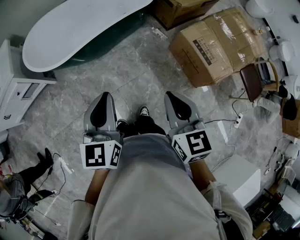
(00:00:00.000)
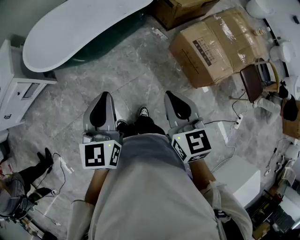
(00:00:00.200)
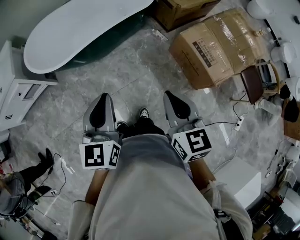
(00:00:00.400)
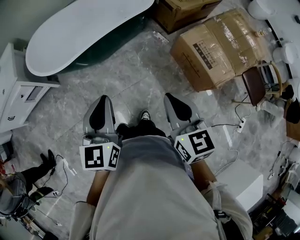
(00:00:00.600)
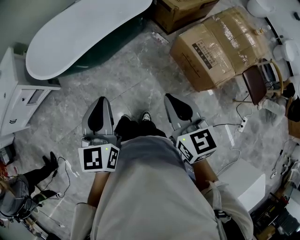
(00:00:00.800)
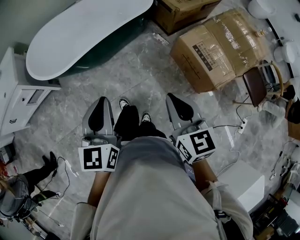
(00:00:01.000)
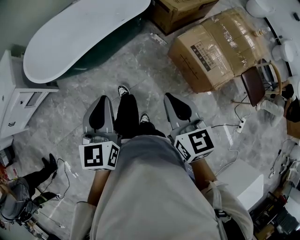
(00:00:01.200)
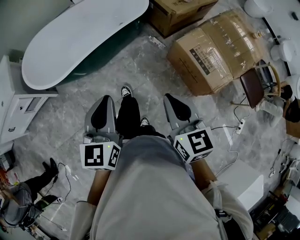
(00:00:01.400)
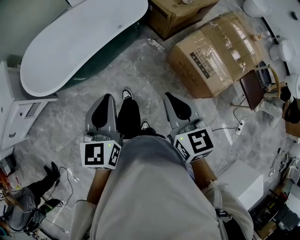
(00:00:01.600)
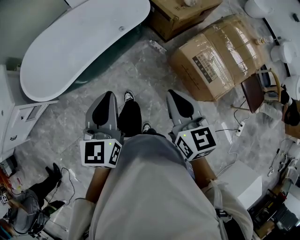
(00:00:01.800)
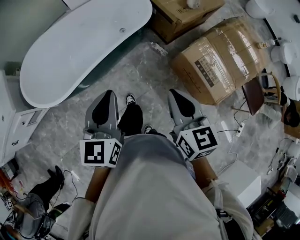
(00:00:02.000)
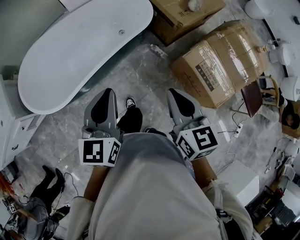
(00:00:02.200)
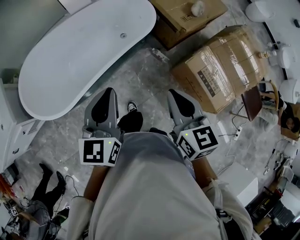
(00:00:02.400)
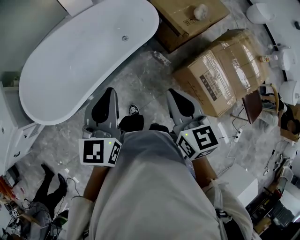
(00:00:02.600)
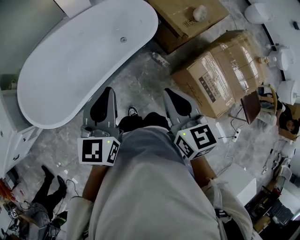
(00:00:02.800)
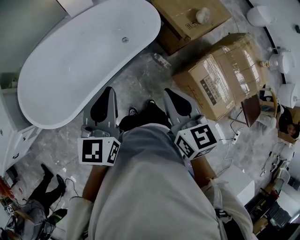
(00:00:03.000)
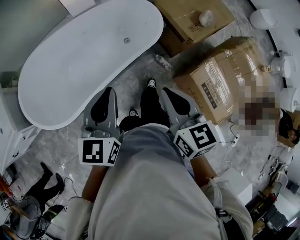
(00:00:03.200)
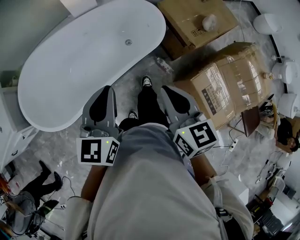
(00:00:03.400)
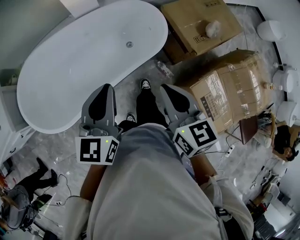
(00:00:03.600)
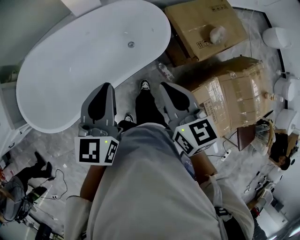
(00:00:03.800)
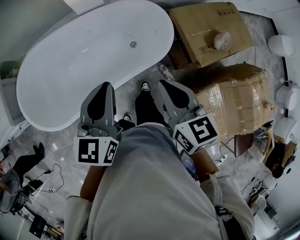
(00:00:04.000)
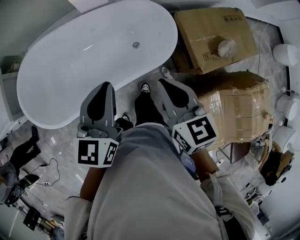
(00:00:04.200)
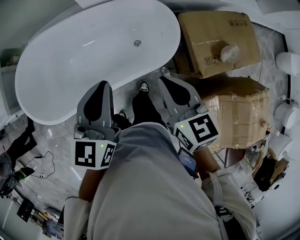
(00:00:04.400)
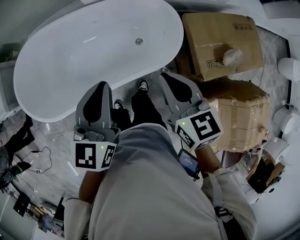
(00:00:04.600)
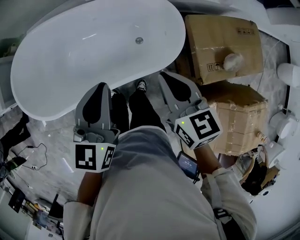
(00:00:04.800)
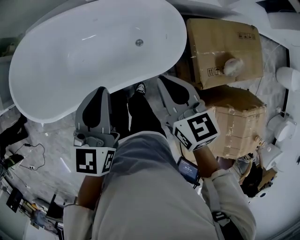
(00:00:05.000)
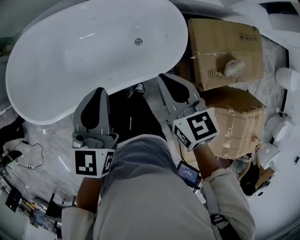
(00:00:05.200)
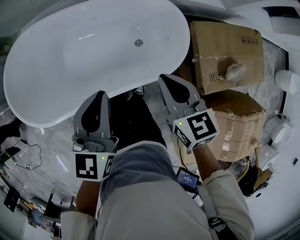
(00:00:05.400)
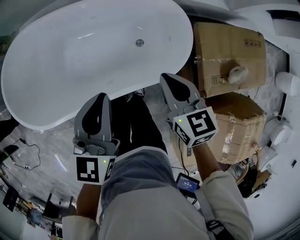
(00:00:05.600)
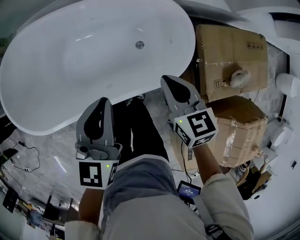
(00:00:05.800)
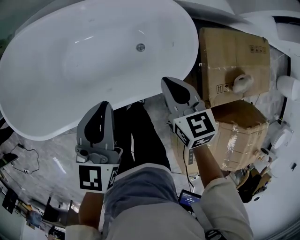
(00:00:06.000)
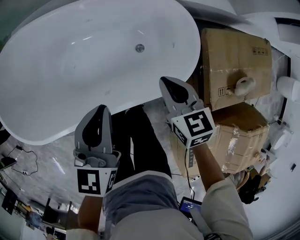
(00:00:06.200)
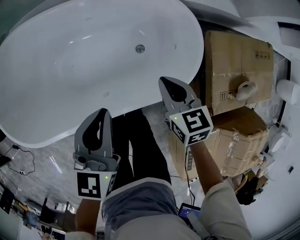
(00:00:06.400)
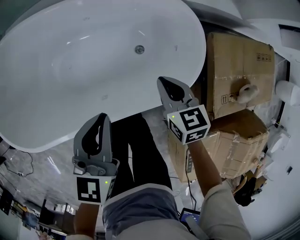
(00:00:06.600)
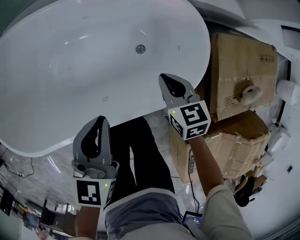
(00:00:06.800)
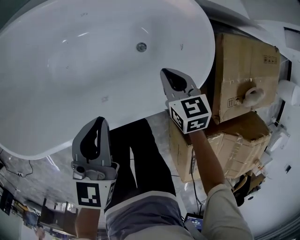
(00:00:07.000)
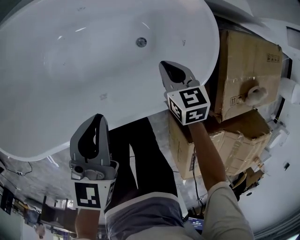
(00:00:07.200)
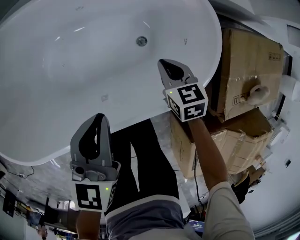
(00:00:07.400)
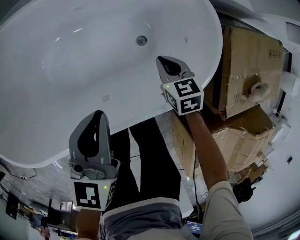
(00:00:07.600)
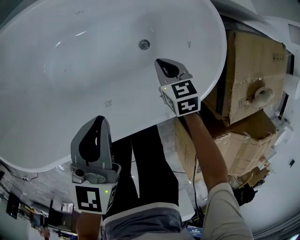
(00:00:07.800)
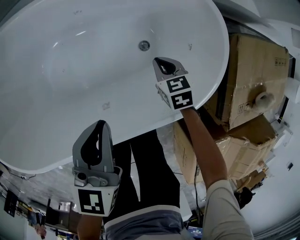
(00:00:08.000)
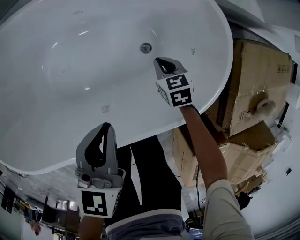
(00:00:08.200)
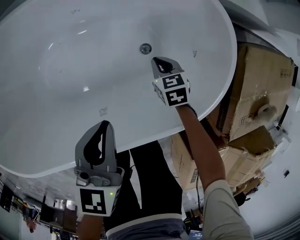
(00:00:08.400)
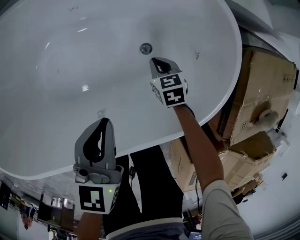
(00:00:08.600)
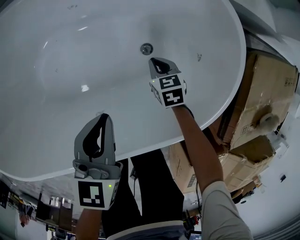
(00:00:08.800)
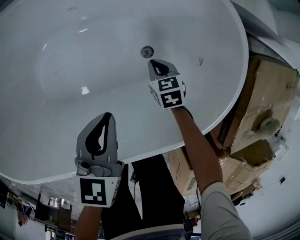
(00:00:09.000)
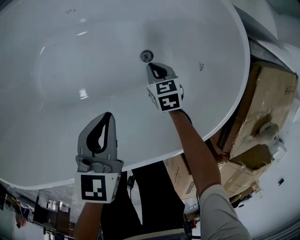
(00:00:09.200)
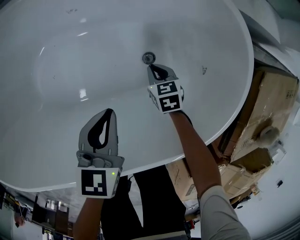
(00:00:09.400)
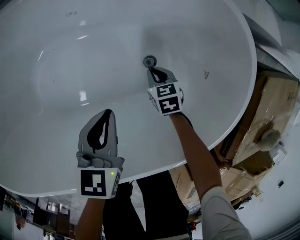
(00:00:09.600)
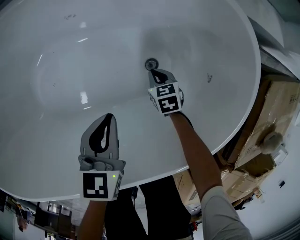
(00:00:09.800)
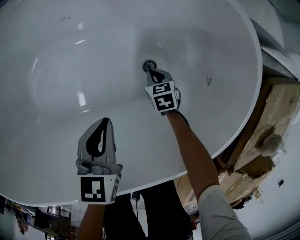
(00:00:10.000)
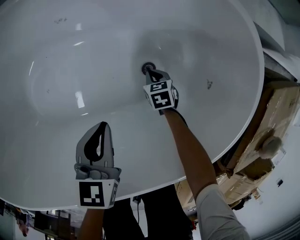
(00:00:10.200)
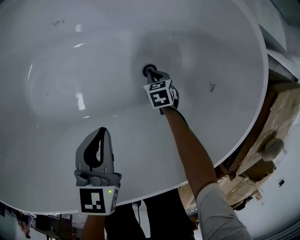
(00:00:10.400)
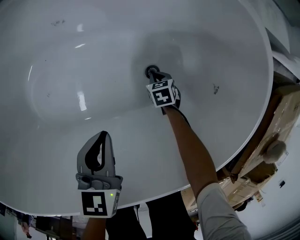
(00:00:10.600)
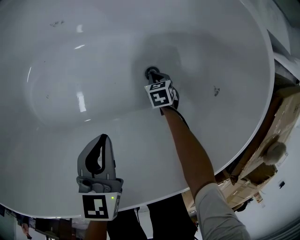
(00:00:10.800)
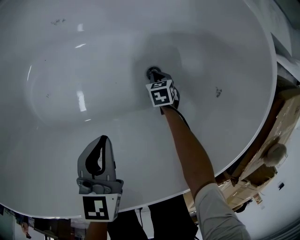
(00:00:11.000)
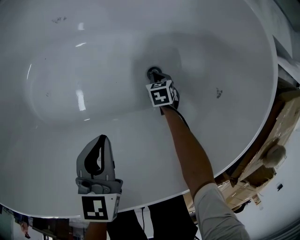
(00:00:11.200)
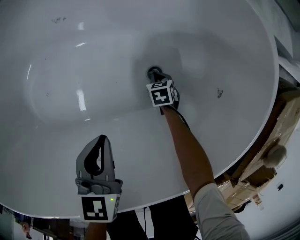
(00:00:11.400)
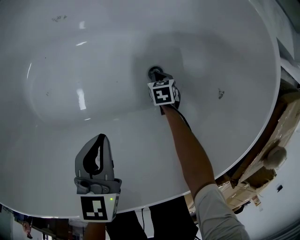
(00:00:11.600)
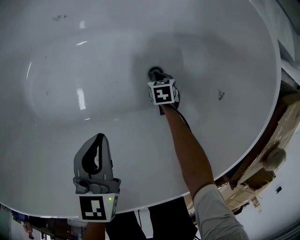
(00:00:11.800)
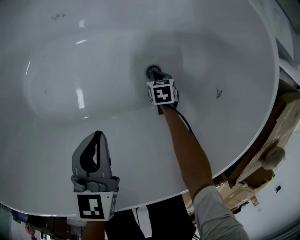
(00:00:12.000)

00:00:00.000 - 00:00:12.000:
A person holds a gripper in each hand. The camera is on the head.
00:00:00.000 - 00:00:01.600: The grippers both shift forward and to the right by about 15 cm.
00:00:01.600 - 00:00:03.000: Both grippers move forward, about 30 cm.
00:00:03.000 - 00:00:04.400: The grippers both shift forward by roughly 30 cm. The right gripper changes its angle by about 20 degrees.
00:00:04.400 - 00:00:06.000: Both grippers travel together downward and forward, approximately 25 cm.
00:00:06.000 - 00:00:07.600: The left gripper heads downward, covering approximately 15 cm. Meanwhile the right gripper is displaced downward by approximately 30 cm.
00:00:07.600 - 00:00:09.000: The two grippers go approximately 20 cm downward.
00:00:09.000 - 00:00:10.400: The left gripper goes about 10 cm downward. The right gripper goes roughly 20 cm downward.
00:00:10.400 - 00:00:12.000: The grippers stay close to where they were, moving slightly.

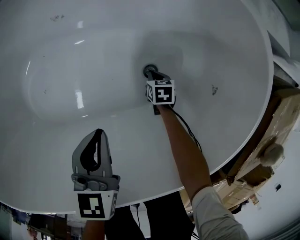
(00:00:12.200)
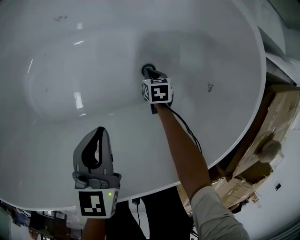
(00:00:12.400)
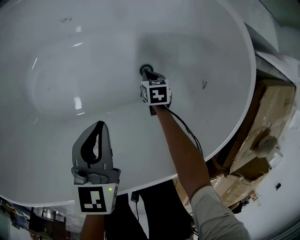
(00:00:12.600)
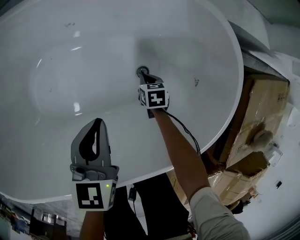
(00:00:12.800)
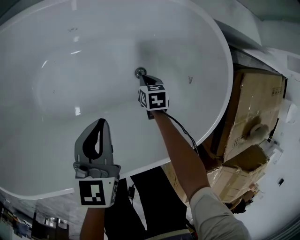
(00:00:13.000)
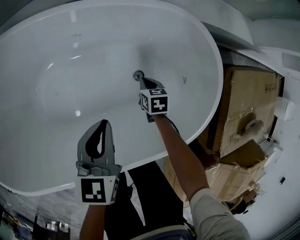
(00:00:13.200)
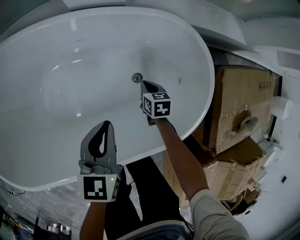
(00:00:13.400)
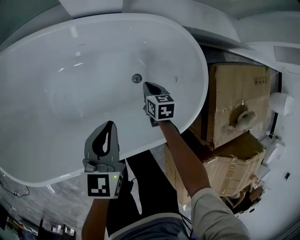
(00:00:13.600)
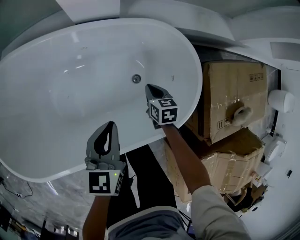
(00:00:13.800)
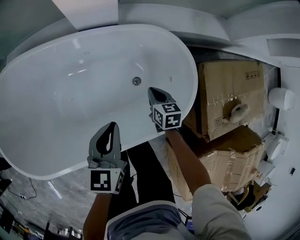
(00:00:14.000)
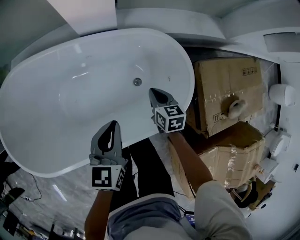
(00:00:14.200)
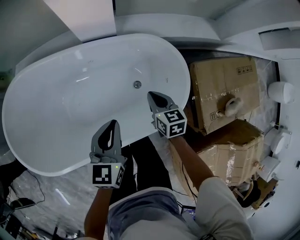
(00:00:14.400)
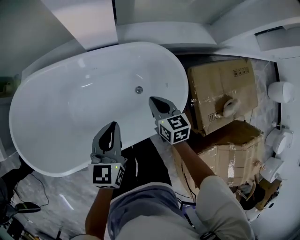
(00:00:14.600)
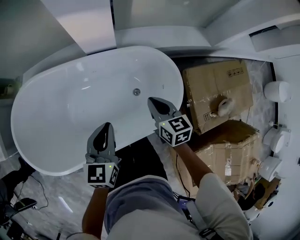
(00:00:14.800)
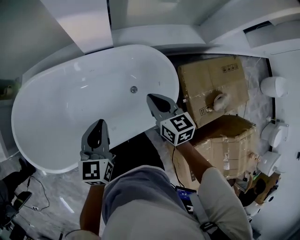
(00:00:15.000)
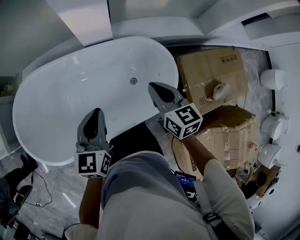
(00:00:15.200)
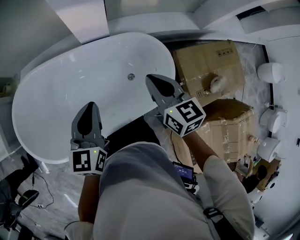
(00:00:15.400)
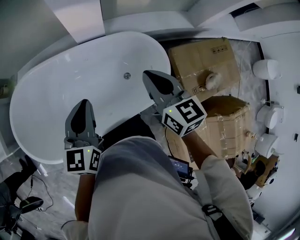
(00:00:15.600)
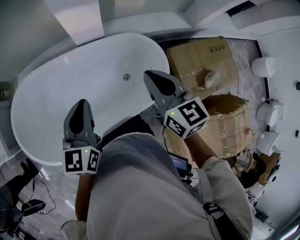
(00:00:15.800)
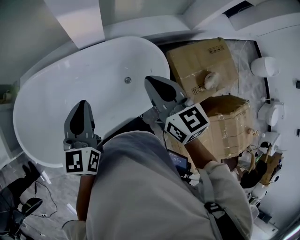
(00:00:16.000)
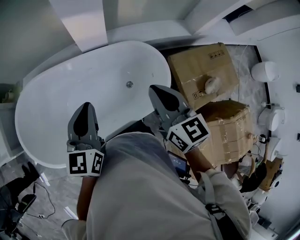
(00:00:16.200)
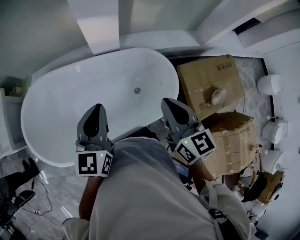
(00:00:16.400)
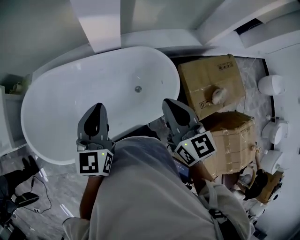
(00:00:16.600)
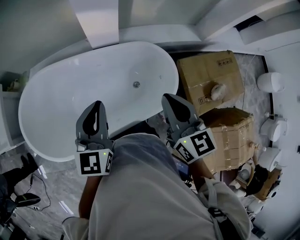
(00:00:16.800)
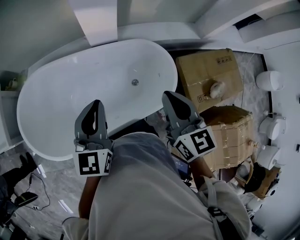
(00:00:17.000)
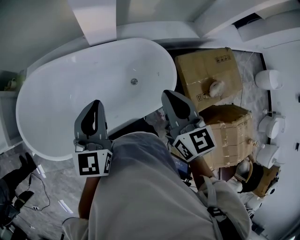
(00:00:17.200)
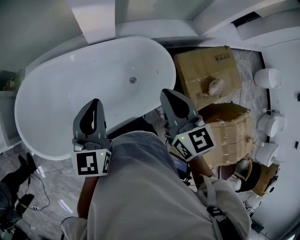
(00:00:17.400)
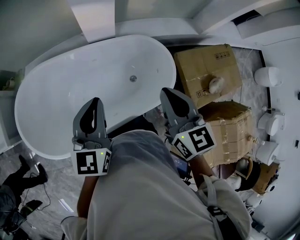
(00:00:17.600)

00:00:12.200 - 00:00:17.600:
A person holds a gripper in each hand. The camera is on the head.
00:00:12.200 - 00:00:13.600: Both grippers travel together upward, about 30 cm.
00:00:13.600 - 00:00:15.000: The right gripper heads upward, covering about 40 cm, and swivels some 20 degrees. The left gripper shifts approximately 25 cm upward.
00:00:15.000 - 00:00:16.200: The left gripper goes approximately 15 cm upward. The right gripper goes about 20 cm upward and backward.
00:00:16.200 - 00:00:17.600: The grippers make only small movements.

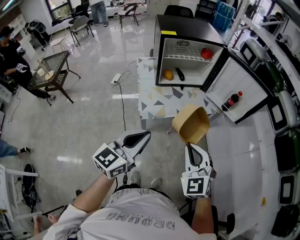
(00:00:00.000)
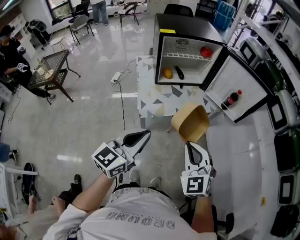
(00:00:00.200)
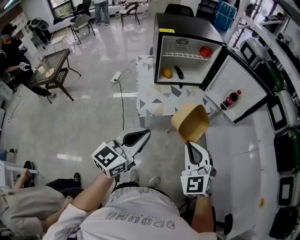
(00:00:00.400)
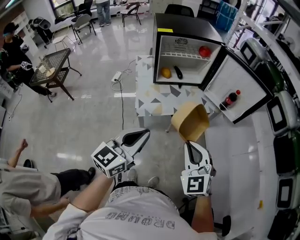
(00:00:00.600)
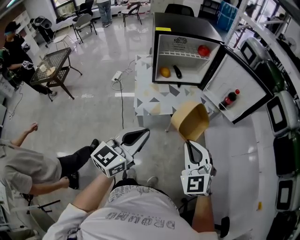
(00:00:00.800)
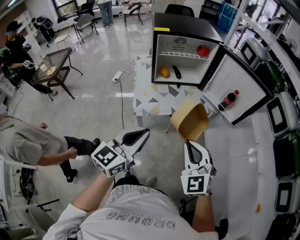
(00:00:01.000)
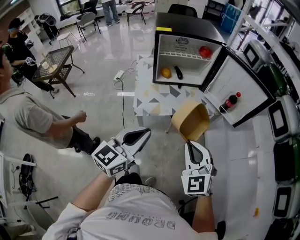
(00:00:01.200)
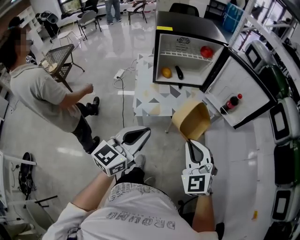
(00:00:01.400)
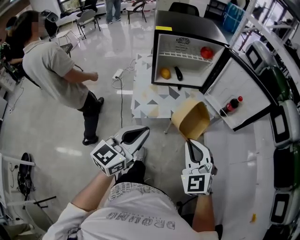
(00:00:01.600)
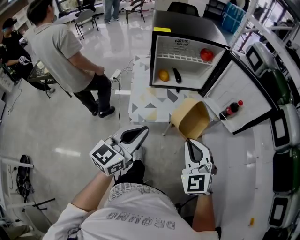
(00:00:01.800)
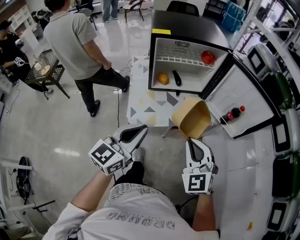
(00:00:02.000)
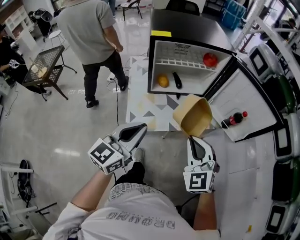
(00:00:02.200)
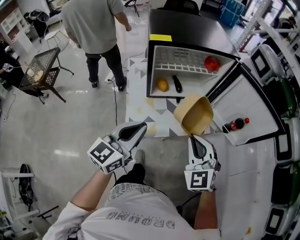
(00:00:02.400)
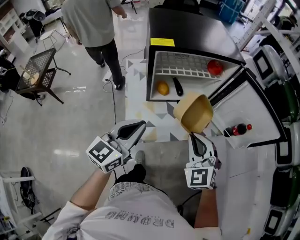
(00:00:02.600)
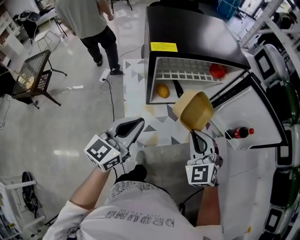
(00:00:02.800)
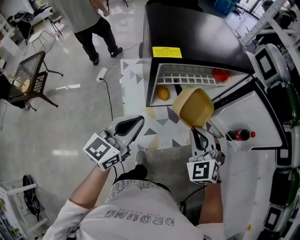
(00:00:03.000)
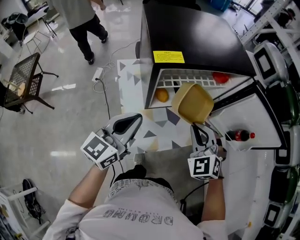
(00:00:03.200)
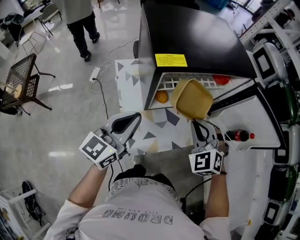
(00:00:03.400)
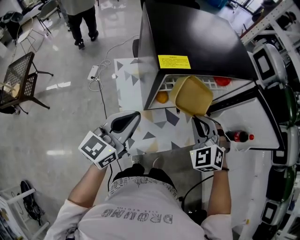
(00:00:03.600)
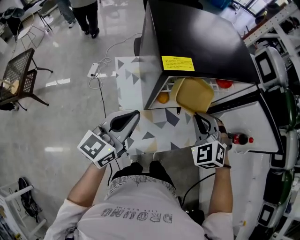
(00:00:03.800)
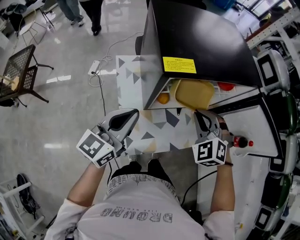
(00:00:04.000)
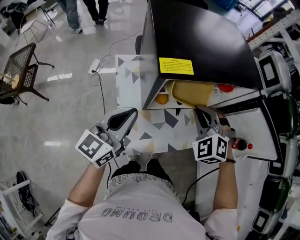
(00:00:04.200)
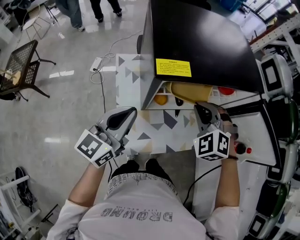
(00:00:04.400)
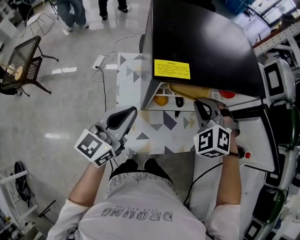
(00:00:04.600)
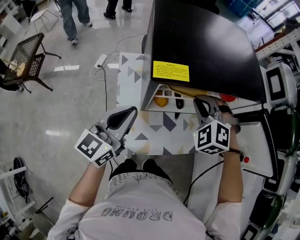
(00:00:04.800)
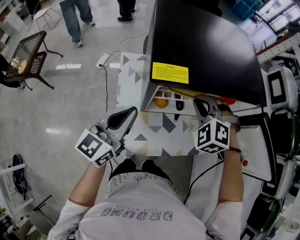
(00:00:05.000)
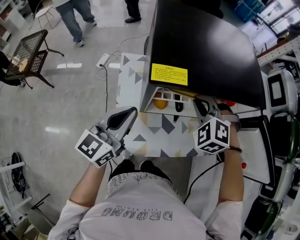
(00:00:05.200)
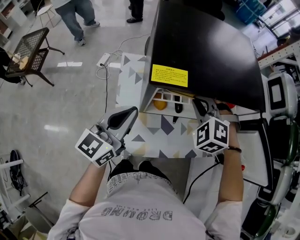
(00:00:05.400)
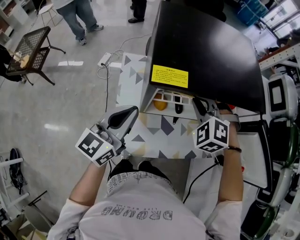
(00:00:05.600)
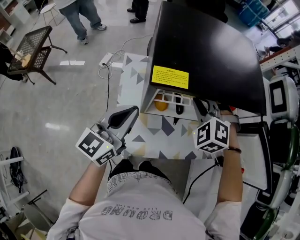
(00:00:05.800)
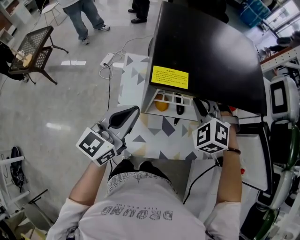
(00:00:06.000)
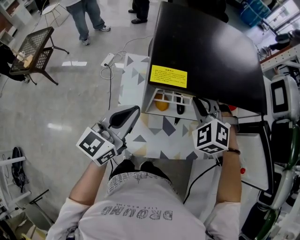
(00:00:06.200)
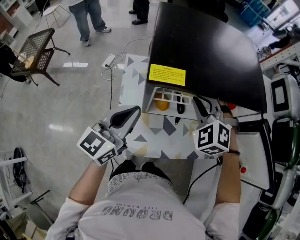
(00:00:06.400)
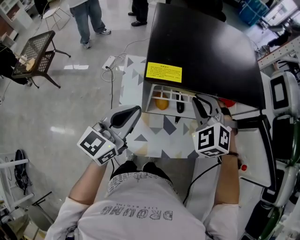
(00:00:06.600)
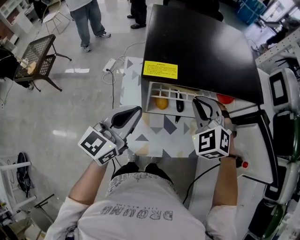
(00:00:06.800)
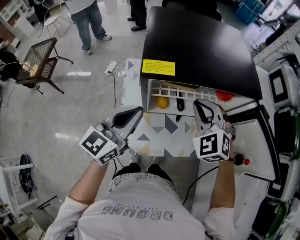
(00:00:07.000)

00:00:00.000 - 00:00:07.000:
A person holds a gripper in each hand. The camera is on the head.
00:00:00.000 - 00:00:01.400: The two grippers go some 5 cm to the right.
00:00:01.400 - 00:00:02.800: The left gripper moves forward and to the left, approximately 30 cm. Meanwhile the right gripper goes some 30 cm forward.
00:00:02.800 - 00:00:04.200: The right gripper moves forward, about 15 cm, and swivels roughly 30 degrees, while the left gripper shifts approximately 10 cm forward and to the left.
00:00:04.200 - 00:00:05.600: The right gripper moves forward, approximately 10 cm.
00:00:05.600 - 00:00:07.000: The left gripper shifts by about 5 cm, while the right gripper shifts by approximately 5 cm, and turns by some 30 degrees.
